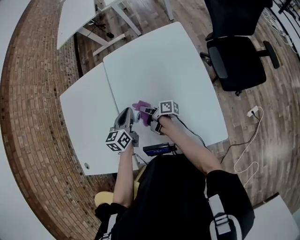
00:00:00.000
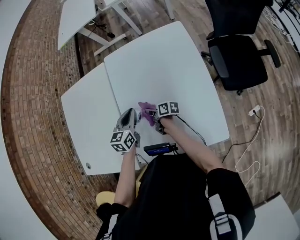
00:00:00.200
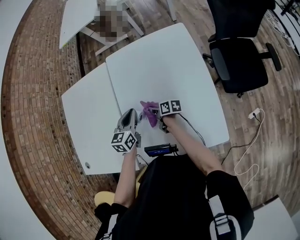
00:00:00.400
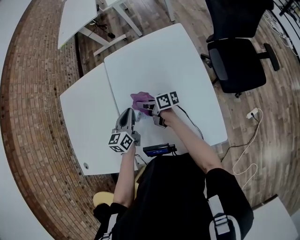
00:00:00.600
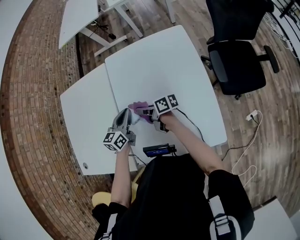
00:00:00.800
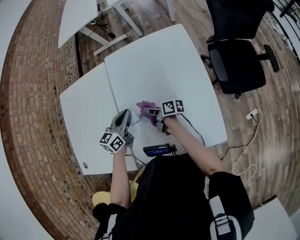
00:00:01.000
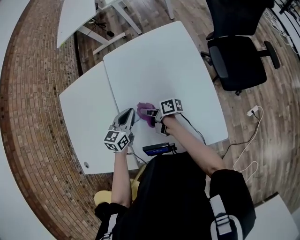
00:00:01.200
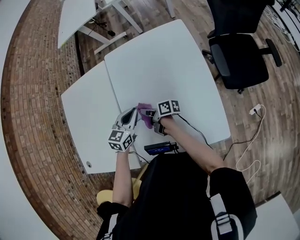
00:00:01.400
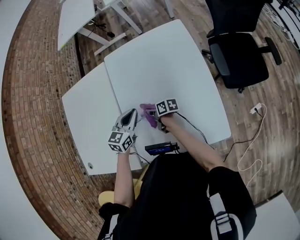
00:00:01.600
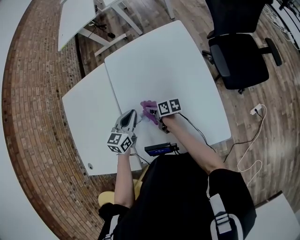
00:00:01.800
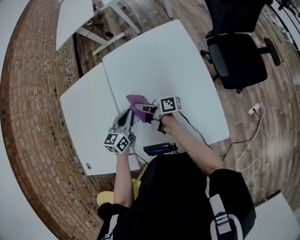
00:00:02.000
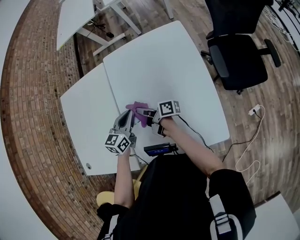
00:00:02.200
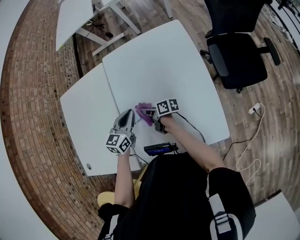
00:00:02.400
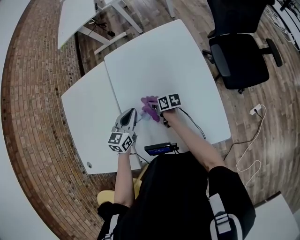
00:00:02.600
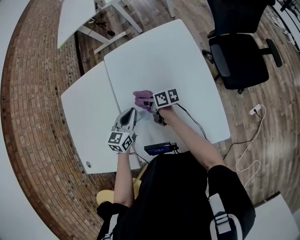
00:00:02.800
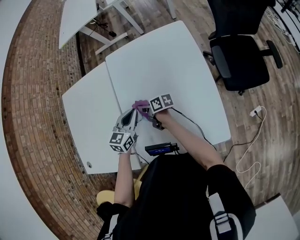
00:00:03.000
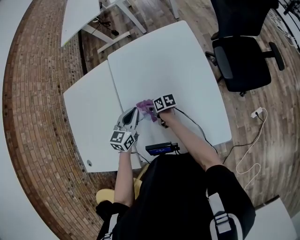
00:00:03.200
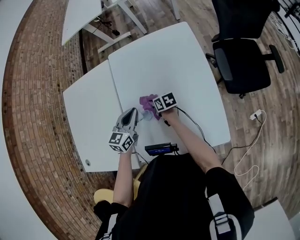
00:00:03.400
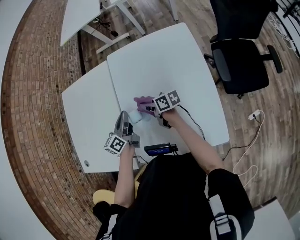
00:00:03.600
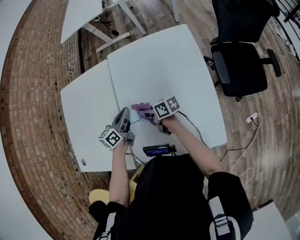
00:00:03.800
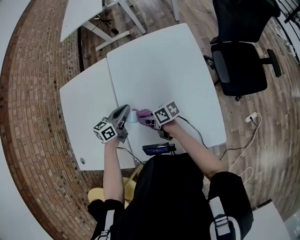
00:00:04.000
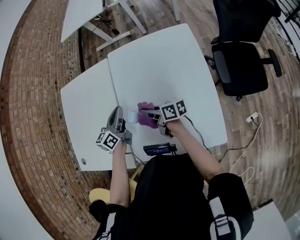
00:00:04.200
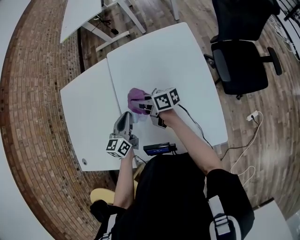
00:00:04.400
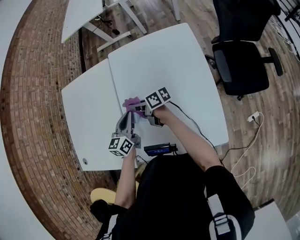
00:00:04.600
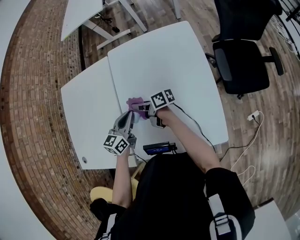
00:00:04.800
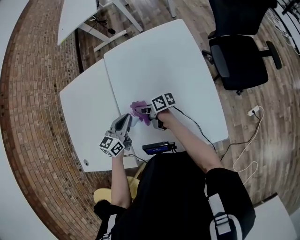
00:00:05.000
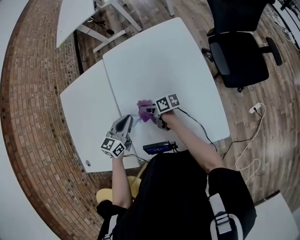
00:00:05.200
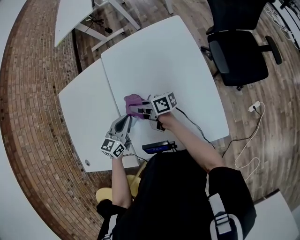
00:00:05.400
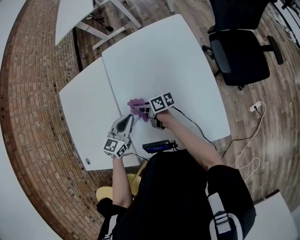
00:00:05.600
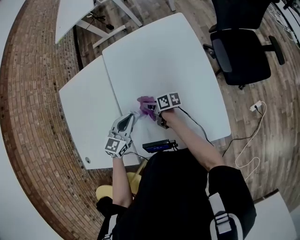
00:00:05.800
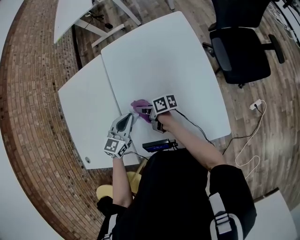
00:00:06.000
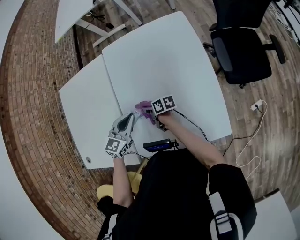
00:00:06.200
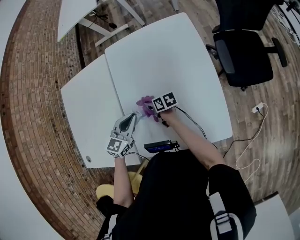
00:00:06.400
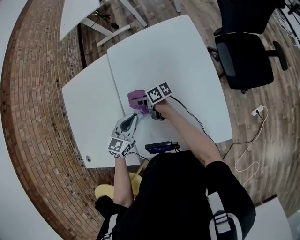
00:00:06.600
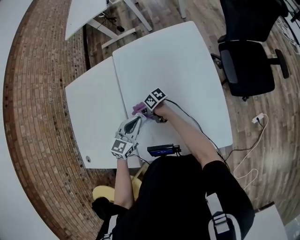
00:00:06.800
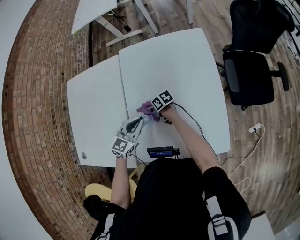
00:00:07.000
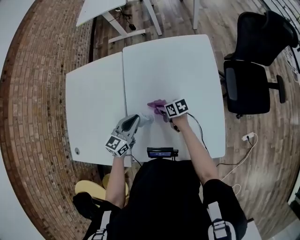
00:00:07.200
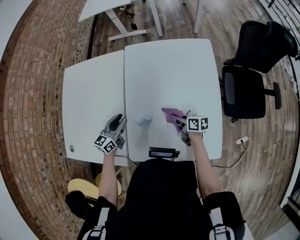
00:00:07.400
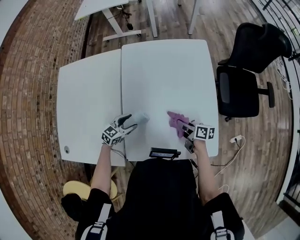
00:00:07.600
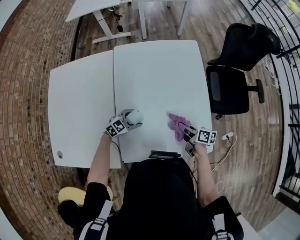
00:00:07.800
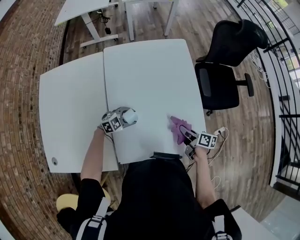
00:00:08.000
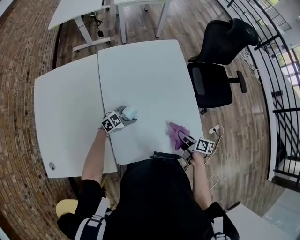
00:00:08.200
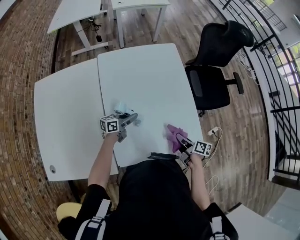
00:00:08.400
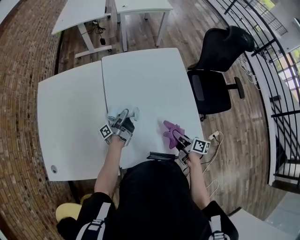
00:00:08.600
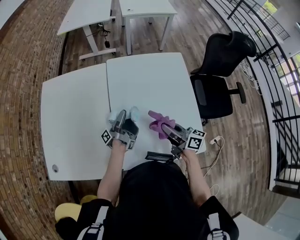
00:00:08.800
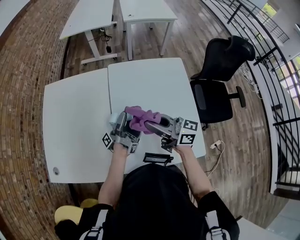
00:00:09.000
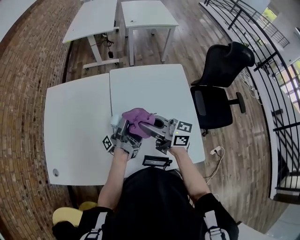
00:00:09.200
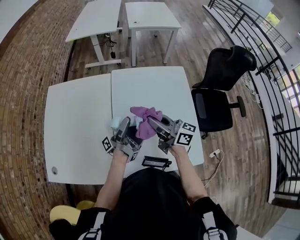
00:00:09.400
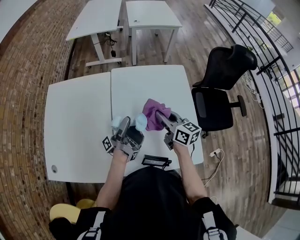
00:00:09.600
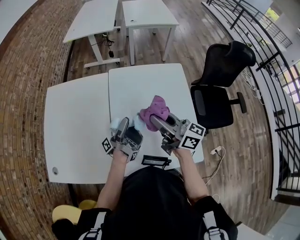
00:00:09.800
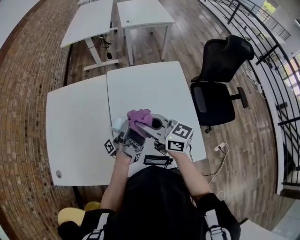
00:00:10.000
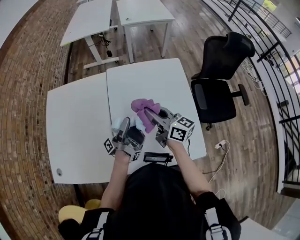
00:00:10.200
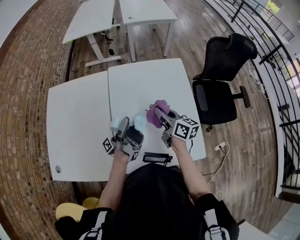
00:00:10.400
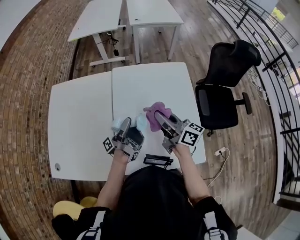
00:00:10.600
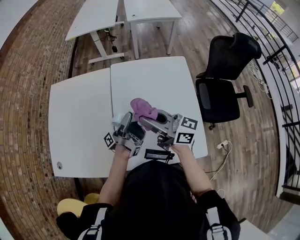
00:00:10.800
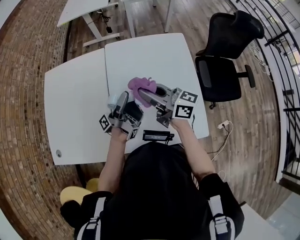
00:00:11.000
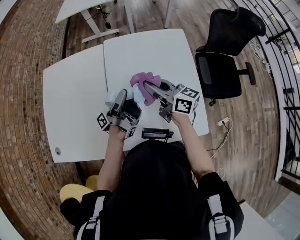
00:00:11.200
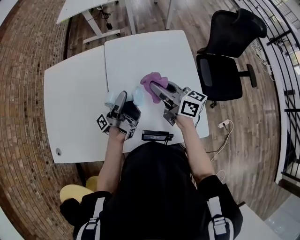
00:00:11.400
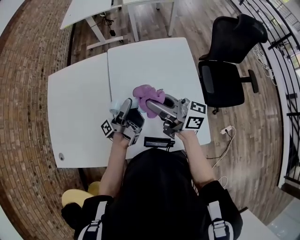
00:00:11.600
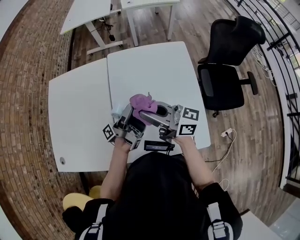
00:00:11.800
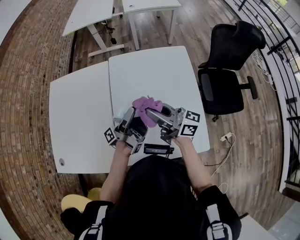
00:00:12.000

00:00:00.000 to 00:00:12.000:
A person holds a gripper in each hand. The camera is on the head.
00:00:00.000 to 00:00:01.600: The right gripper moves up and down over approximately 10 cm, changing direction 2 times, and rotates roughly 30 degrees. Meanwhile the left gripper rotates approximately 20 degrees.
00:00:01.600 to 00:00:03.000: The right gripper swings up and down, some 15 cm each way, with 3 reversals.
00:00:03.000 to 00:00:04.400: The right gripper travels upward by approximately 10 cm, and turns by roughly 20 degrees; the left gripper turns by some 20 degrees.
00:00:04.400 to 00:00:06.000: The right gripper moves up and down over roughly 15 cm, changing direction 3 times, and swivels approximately 20 degrees; the left gripper swivels about 30 degrees.
00:00:06.000 to 00:00:07.600: The left gripper is displaced downward by roughly 15 cm, and opens. Meanwhile the right gripper swings up and down, approximately 10 cm each way, with 3 reversals, and changes its angle by approximately 20 degrees.
00:00:07.600 to 00:00:09.000: The left gripper travels upward by approximately 15 cm, and points its fingers approximately 60 degrees further upward, while the right gripper shifts some 30 cm upward, and tilts its fingers some 30 degrees upward.
00:00:09.000 to 00:00:10.400: The left gripper changes place by about 5 cm; the right gripper moves left and right over approximately 10 cm, changing direction 2 times, and rotates some 30 degrees.
00:00:10.400 to 00:00:12.000: The right gripper moves up and down over roughly 10 cm, changing direction 2 times, and turns by some 40 degrees.

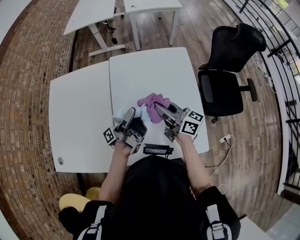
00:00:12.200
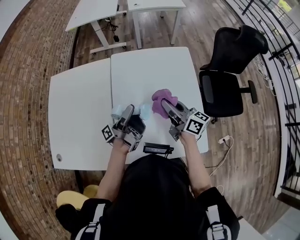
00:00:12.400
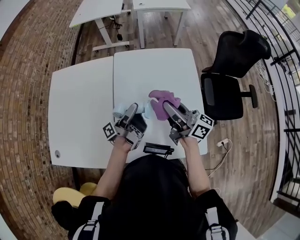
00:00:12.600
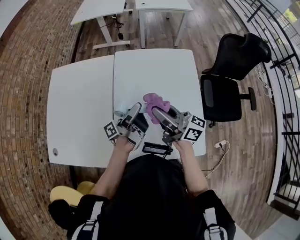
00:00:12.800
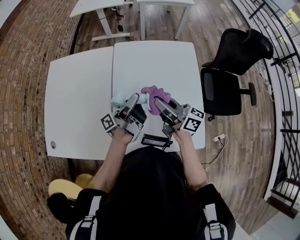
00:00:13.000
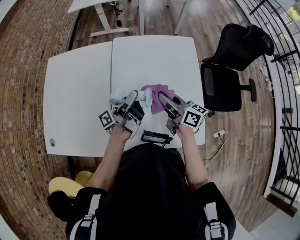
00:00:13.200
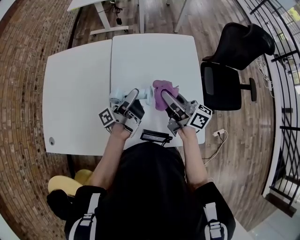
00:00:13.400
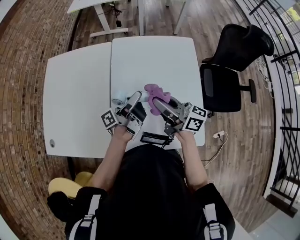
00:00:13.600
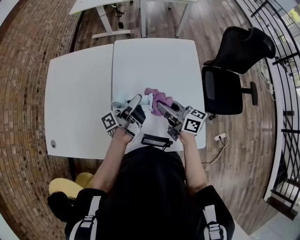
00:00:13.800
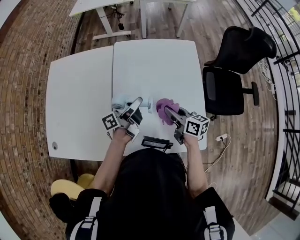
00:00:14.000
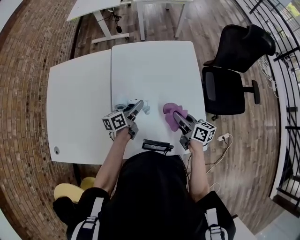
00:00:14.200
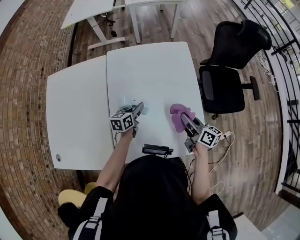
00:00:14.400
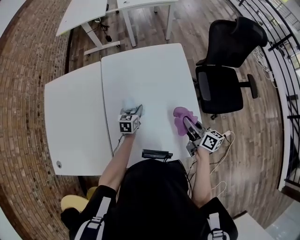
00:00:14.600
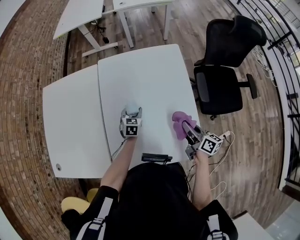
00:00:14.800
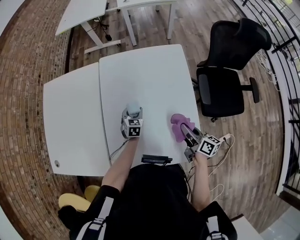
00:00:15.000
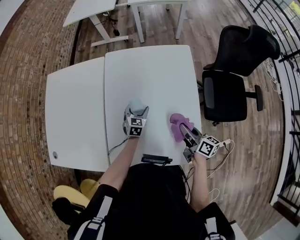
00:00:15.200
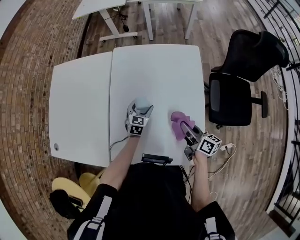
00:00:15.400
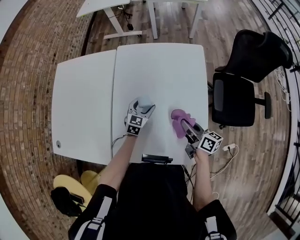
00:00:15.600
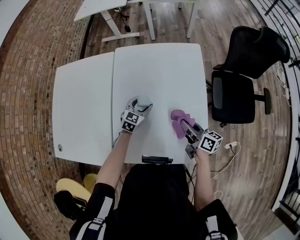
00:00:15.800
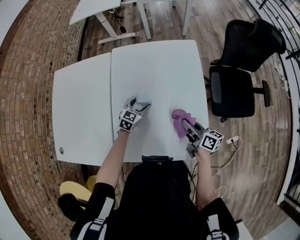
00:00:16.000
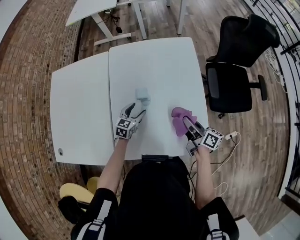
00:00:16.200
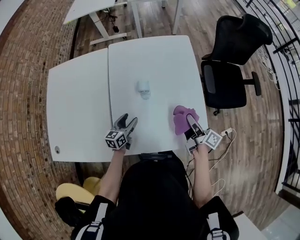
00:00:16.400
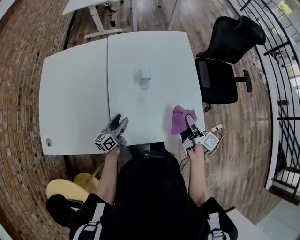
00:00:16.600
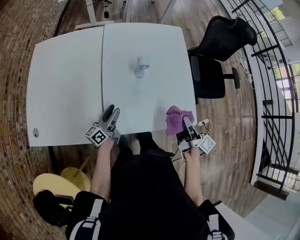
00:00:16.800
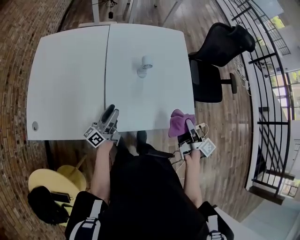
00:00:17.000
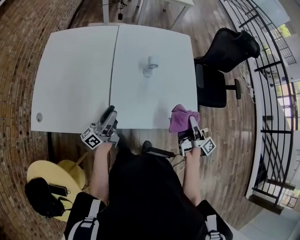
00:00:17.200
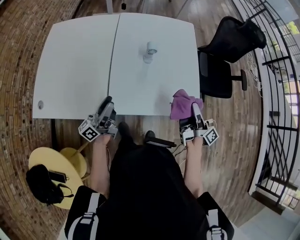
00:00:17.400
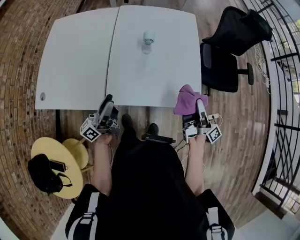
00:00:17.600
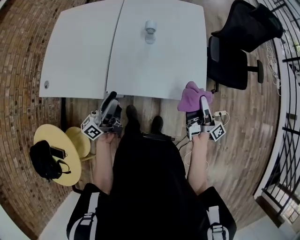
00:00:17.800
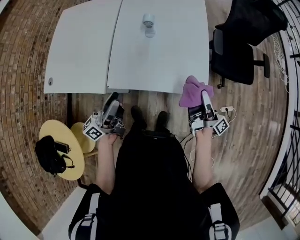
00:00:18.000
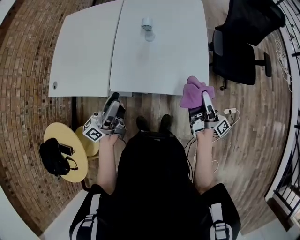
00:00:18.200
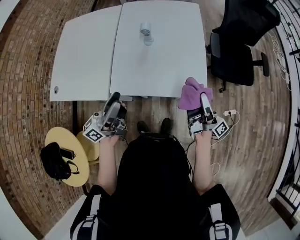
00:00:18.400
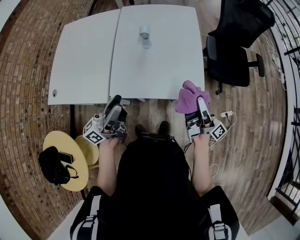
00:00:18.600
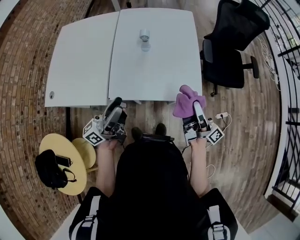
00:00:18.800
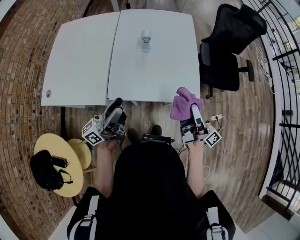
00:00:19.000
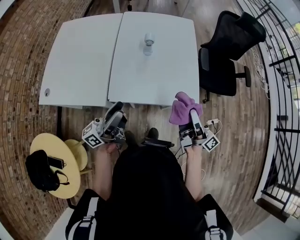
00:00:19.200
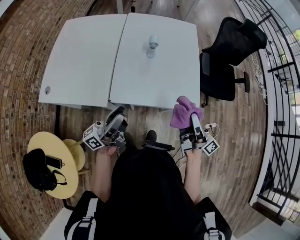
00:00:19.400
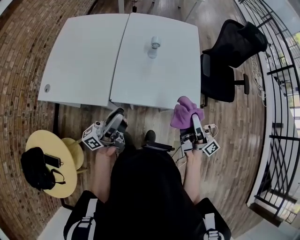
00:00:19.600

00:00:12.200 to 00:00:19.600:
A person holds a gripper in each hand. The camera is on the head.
00:00:12.200 to 00:00:13.600: The right gripper swings up and down, some 10 cm each way, with 2 reversals.
00:00:13.600 to 00:00:15.200: The right gripper goes roughly 25 cm to the right and downward, and changes its angle by about 30 degrees. Meanwhile the left gripper shifts some 20 cm downward, and tips its fingers downward by about 60 degrees.
00:00:15.200 to 00:00:16.600: The left gripper travels backward and to the left by some 25 cm, and swivels roughly 50 degrees. The right gripper moves backward, some 10 cm, and swivels some 30 degrees.
00:00:16.600 to 00:00:18.200: The left gripper heads upward, backward and to the right, covering roughly 30 cm, and changes its angle by approximately 30 degrees; the right gripper goes roughly 15 cm backward, to the right and upward, and turns by about 30 degrees.
00:00:18.200 to 00:00:19.600: The left gripper travels to the left by approximately 5 cm; the right gripper travels to the left, upward and backward by roughly 15 cm.

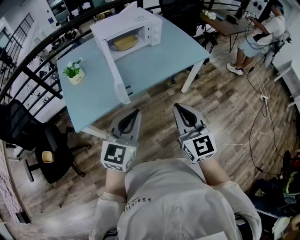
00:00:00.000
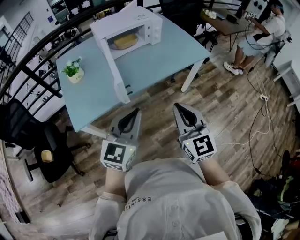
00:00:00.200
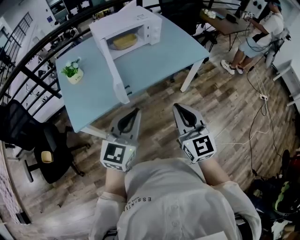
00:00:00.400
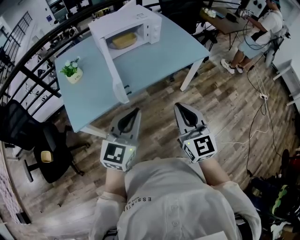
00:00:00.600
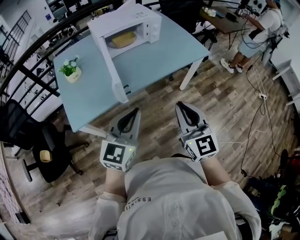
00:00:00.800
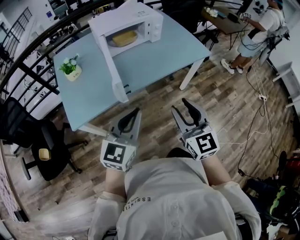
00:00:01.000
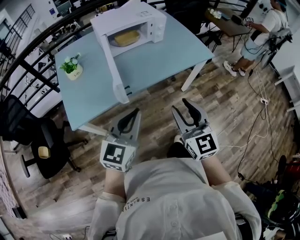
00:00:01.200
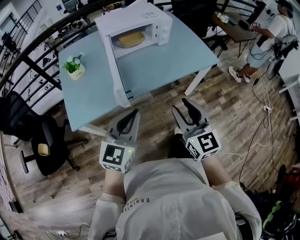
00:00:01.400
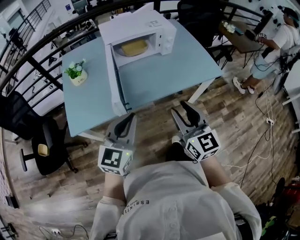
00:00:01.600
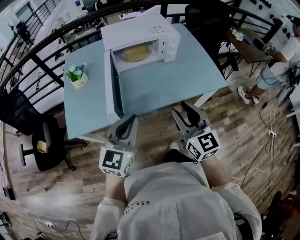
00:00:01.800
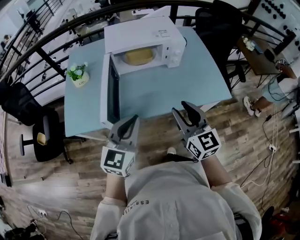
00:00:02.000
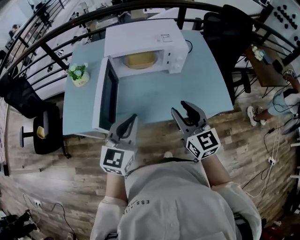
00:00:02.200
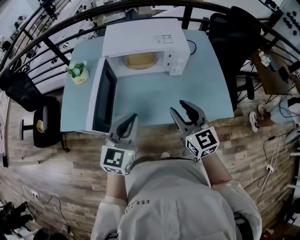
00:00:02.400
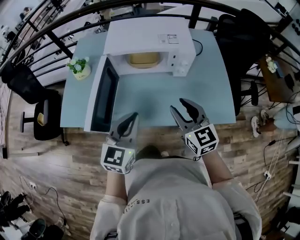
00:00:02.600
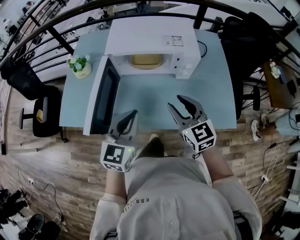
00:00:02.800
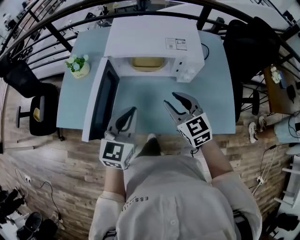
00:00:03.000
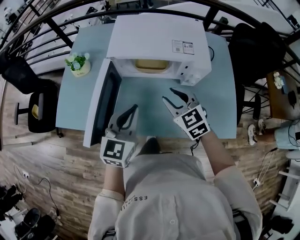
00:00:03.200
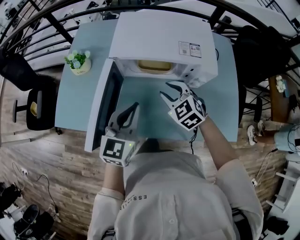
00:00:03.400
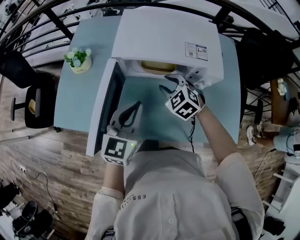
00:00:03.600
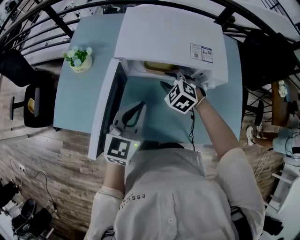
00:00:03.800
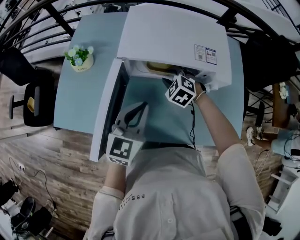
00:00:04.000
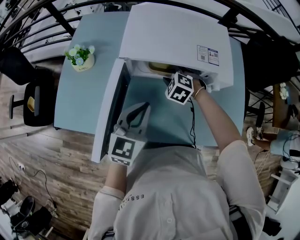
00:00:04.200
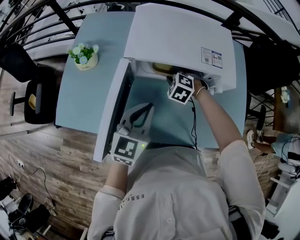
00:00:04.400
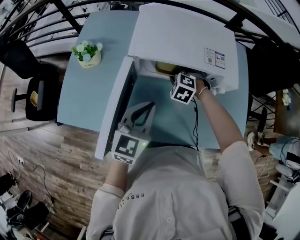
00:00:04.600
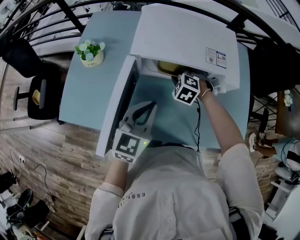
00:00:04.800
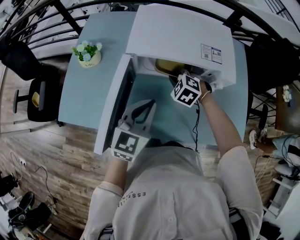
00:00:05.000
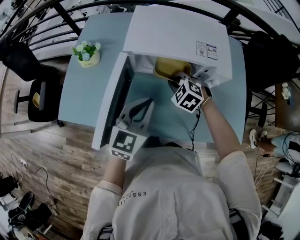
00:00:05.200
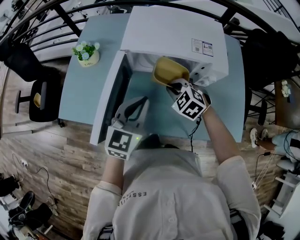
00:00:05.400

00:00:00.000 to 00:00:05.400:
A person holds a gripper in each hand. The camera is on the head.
00:00:00.000 to 00:00:01.400: Both grippers move forward, some 5 cm. The right gripper opens up.
00:00:01.400 to 00:00:02.800: The left gripper moves about 30 cm, and rotates some 30 degrees, while the right gripper changes place by roughly 35 cm, and turns by about 30 degrees.
00:00:02.800 to 00:00:04.000: The left gripper is displaced forward and downward by some 15 cm. The right gripper travels forward and downward by roughly 30 cm, and angles its fingers downward, by approximately 40 degrees.
00:00:04.000 to 00:00:05.400: The right gripper heads backward, covering approximately 10 cm, and closes.
